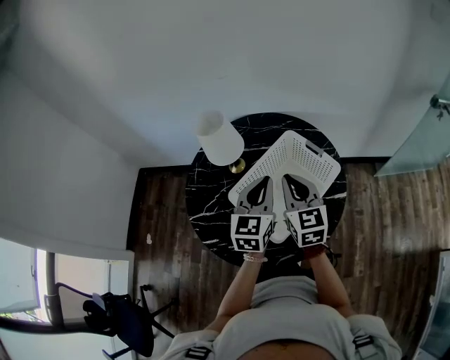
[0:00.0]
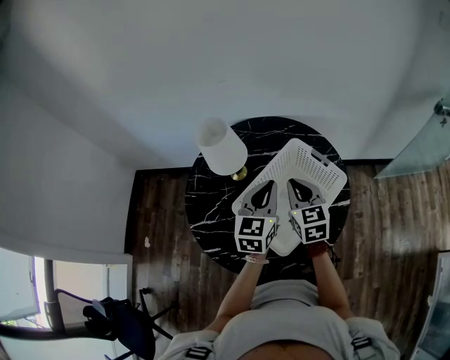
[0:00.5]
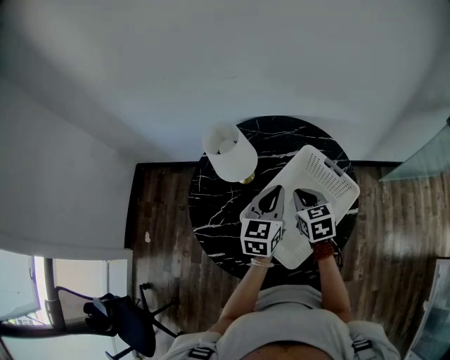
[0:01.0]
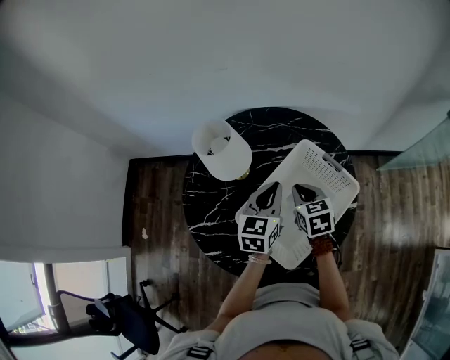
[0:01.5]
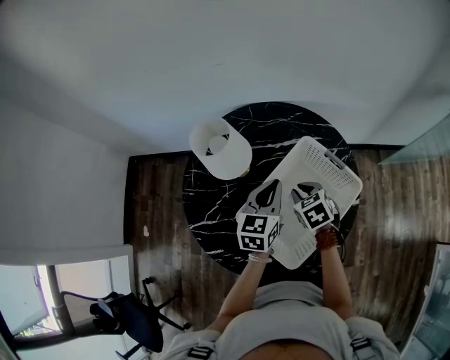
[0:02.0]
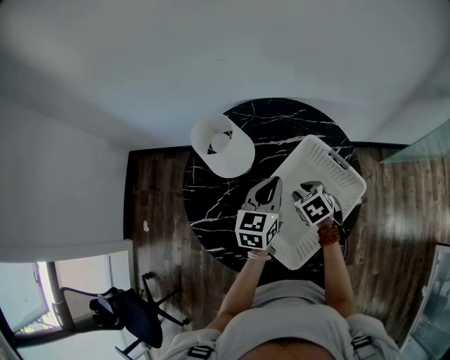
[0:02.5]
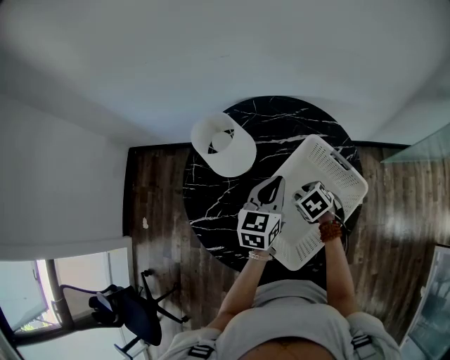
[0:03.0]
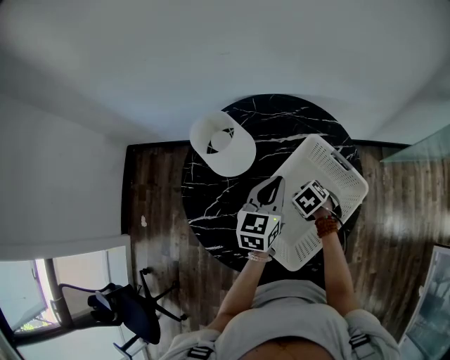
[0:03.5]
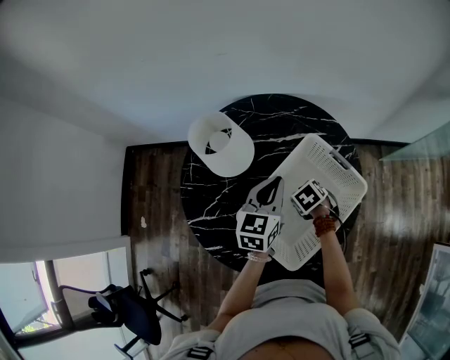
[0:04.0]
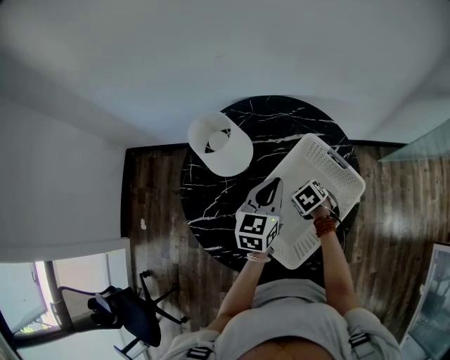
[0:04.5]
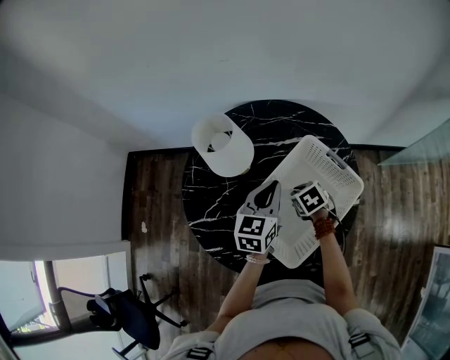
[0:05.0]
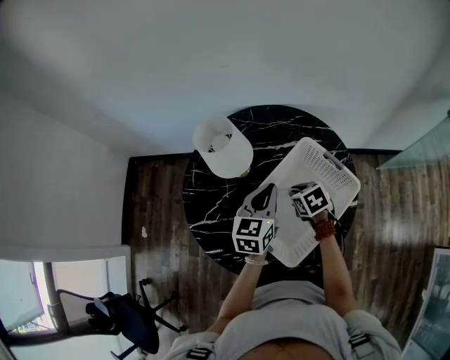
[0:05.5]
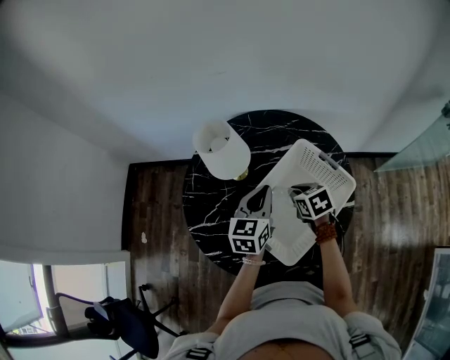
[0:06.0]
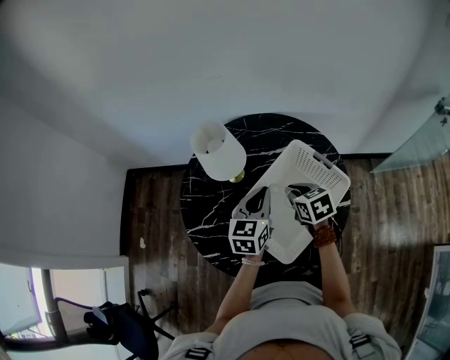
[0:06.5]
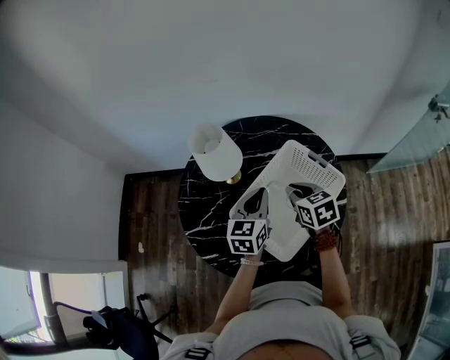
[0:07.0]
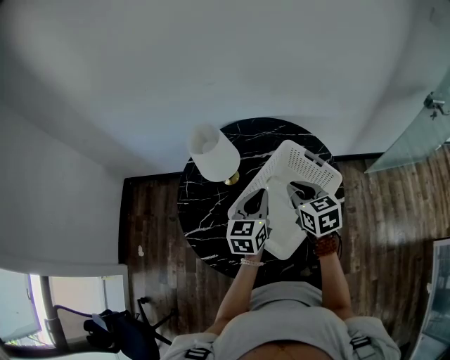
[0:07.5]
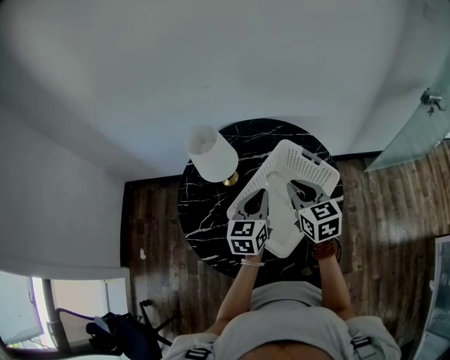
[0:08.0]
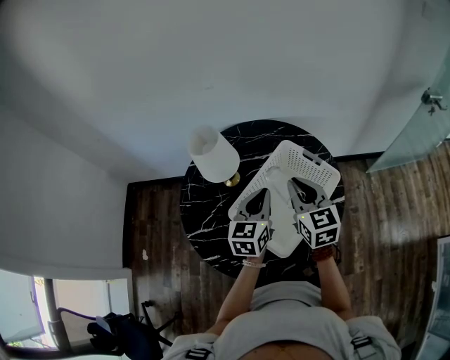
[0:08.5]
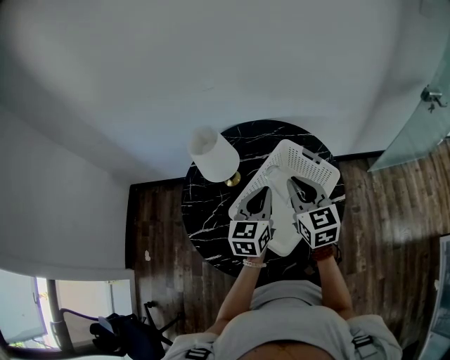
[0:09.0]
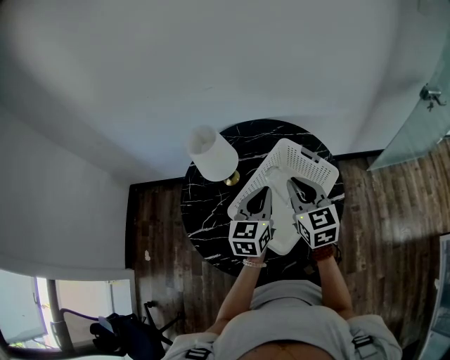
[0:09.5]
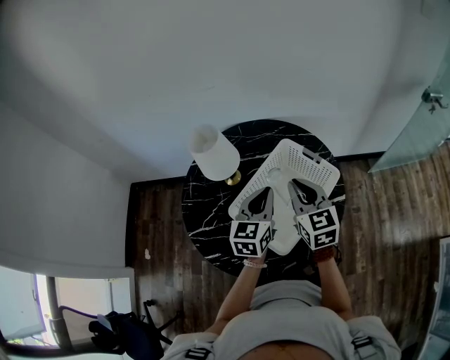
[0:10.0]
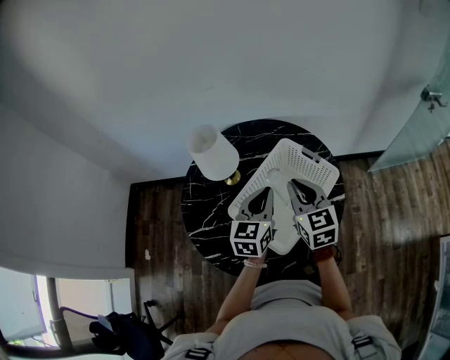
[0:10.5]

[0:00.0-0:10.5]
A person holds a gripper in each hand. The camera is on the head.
0:00.0 to 0:02.0: The left gripper goes roughly 15 cm forward and downward; the right gripper moves downward and forward, approximately 20 cm, and tips its fingers downward by roughly 40 degrees.
0:02.0 to 0:04.0: The right gripper goes about 10 cm downward, and changes its angle by some 20 degrees.
0:04.0 to 0:06.5: The right gripper travels upward by about 15 cm, and rotates some 30 degrees.
0:06.5 to 0:08.5: The right gripper is displaced upward by some 15 cm, and rotates approximately 30 degrees.
0:08.5 to 0:10.5: The grippers stay close to where they were, moving slightly.

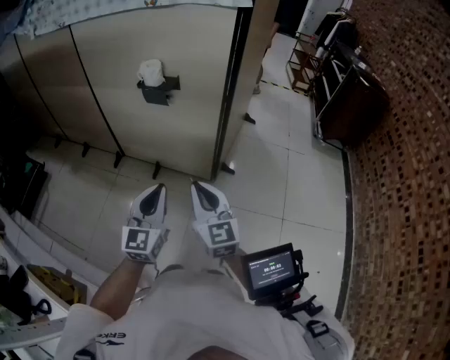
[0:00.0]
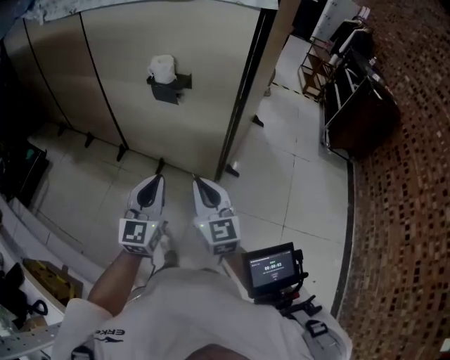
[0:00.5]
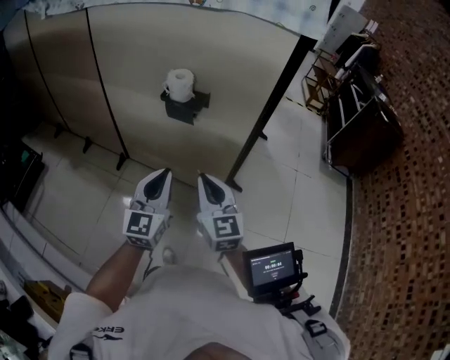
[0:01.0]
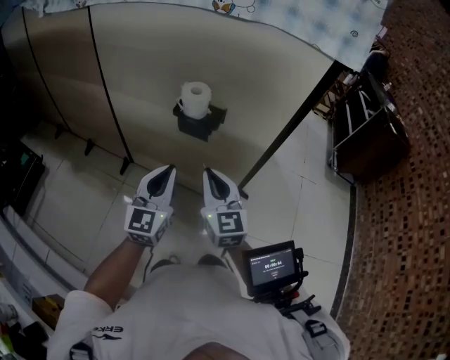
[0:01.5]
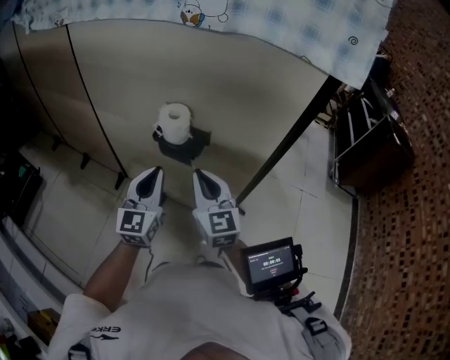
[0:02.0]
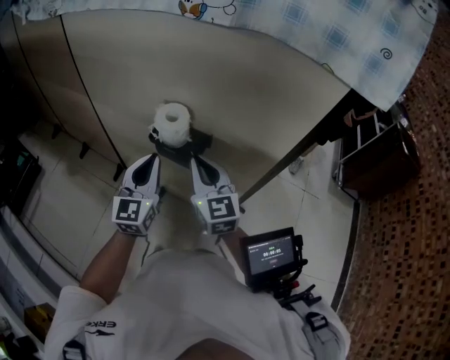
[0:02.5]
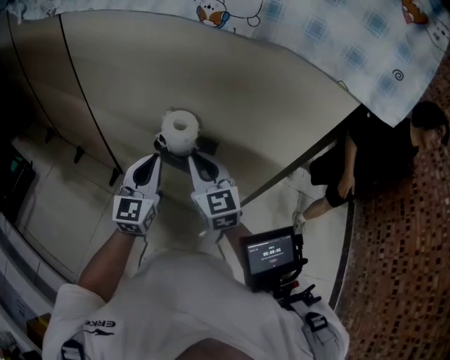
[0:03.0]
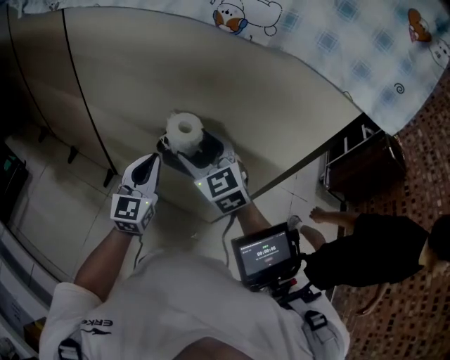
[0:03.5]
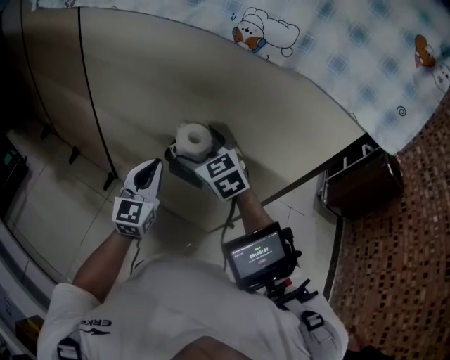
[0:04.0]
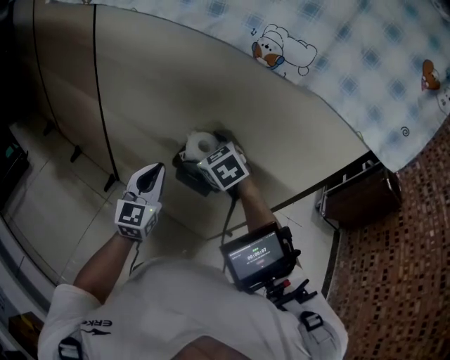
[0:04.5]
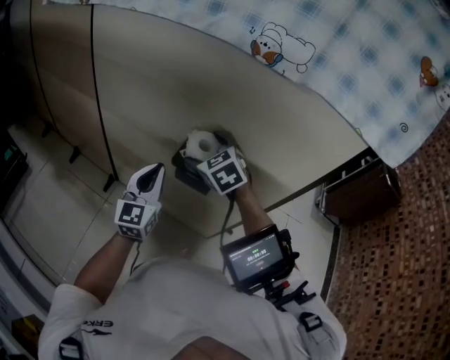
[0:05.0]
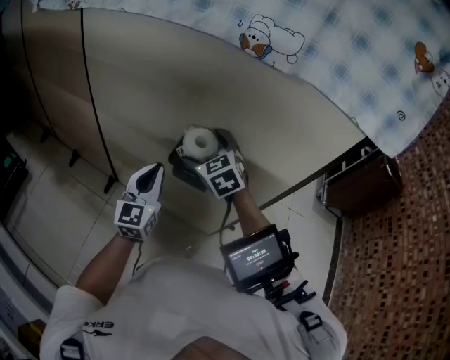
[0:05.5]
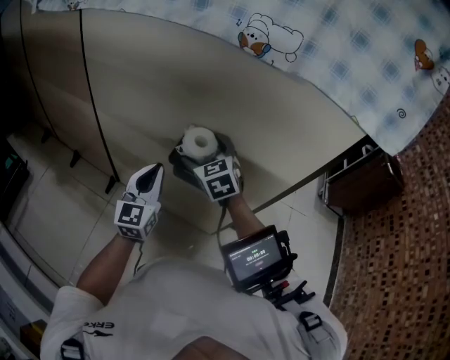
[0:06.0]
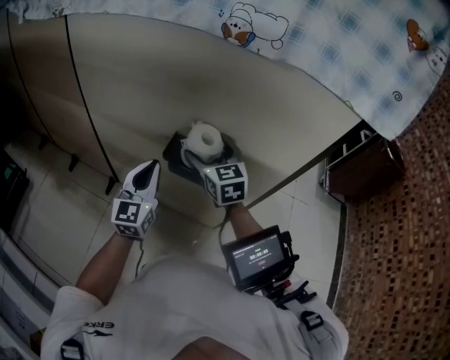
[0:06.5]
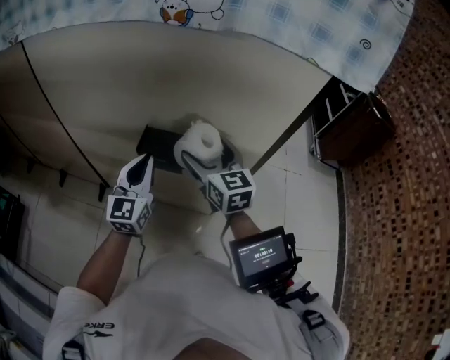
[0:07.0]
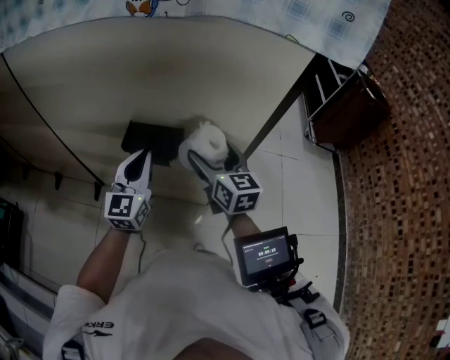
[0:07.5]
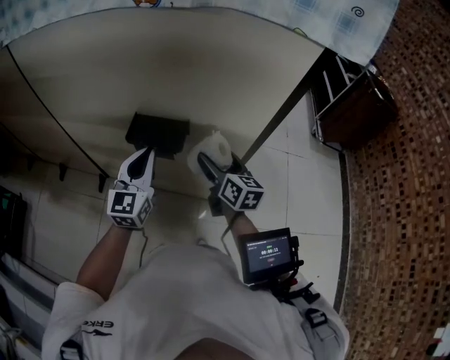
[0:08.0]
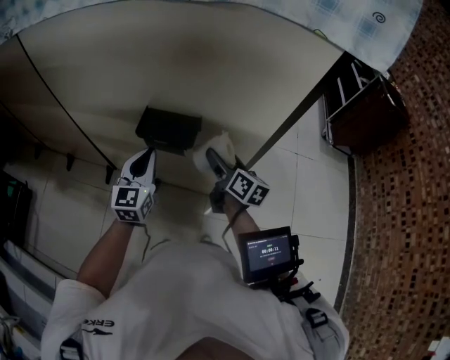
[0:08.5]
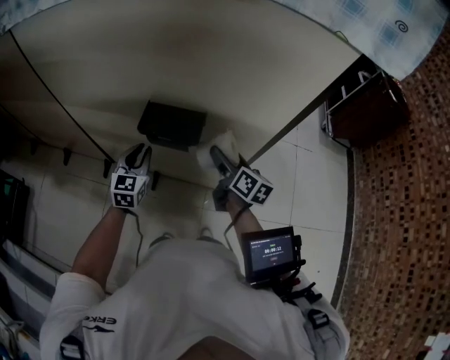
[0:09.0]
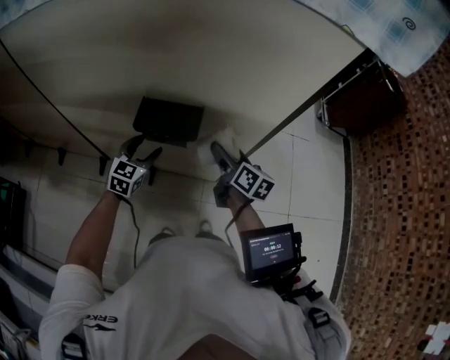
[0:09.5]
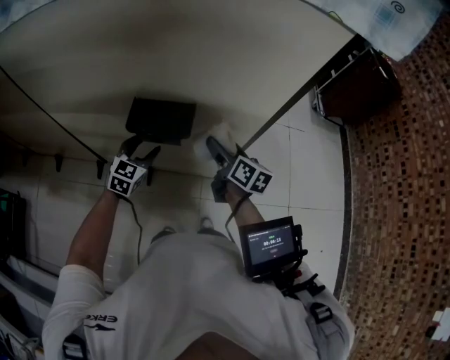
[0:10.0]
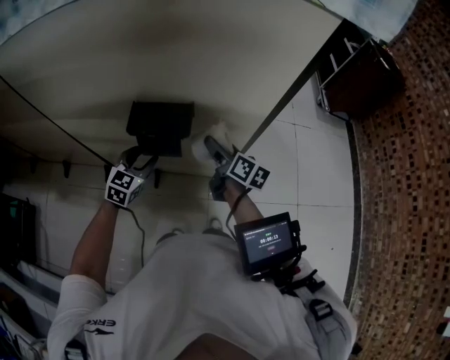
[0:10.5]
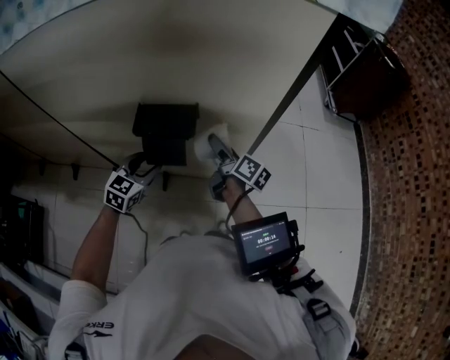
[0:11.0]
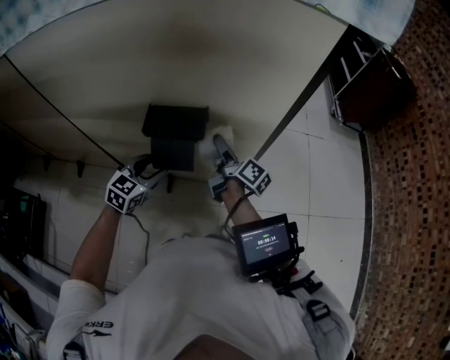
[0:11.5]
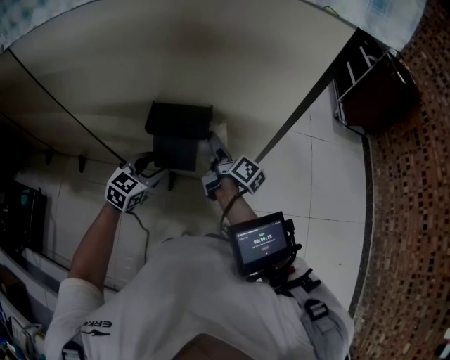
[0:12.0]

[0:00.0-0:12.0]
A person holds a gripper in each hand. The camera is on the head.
0:00.0 to 0:02.0: The two grippers go some 40 cm forward.
0:02.0 to 0:04.0: The right gripper travels forward by roughly 20 cm, swivels some 40 degrees, and opens; the left gripper heads forward, covering about 10 cm.
0:04.0 to 0:06.0: The grippers make only small movements.
0:06.0 to 0:08.0: The right gripper shifts some 20 cm to the right and backward, and twists about 50 degrees clockwise, seen from behind. Meanwhile the left gripper moves to the right, approximately 10 cm.
0:08.0 to 0:10.0: The left gripper is displaced downward by some 15 cm, turns by roughly 30 degrees, and opens up; the right gripper shifts roughly 5 cm downward.
0:10.0 to 0:12.0: The left gripper shifts some 5 cm backward; the right gripper moves to the left, about 5 cm, and rotates roughly 30 degrees.

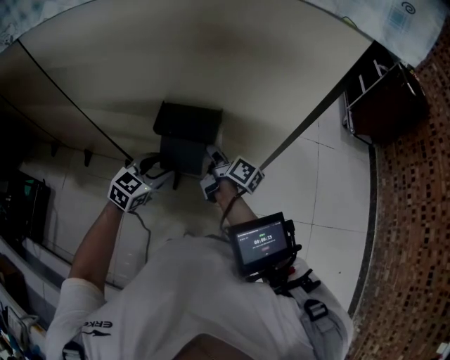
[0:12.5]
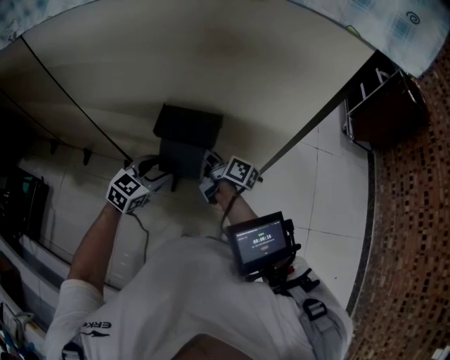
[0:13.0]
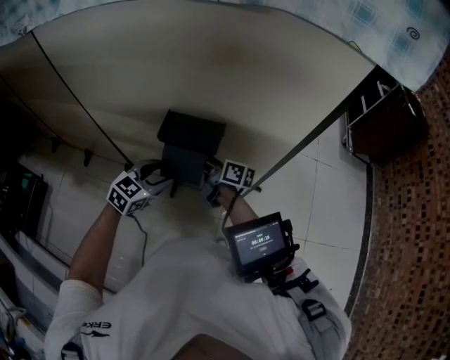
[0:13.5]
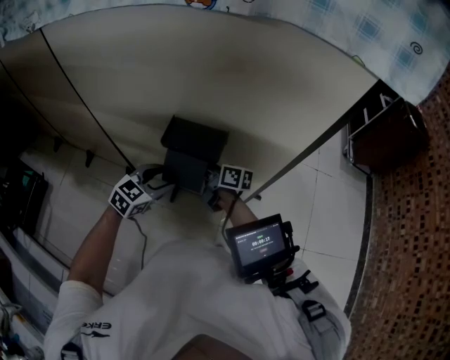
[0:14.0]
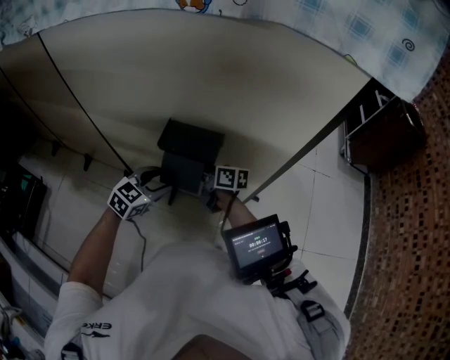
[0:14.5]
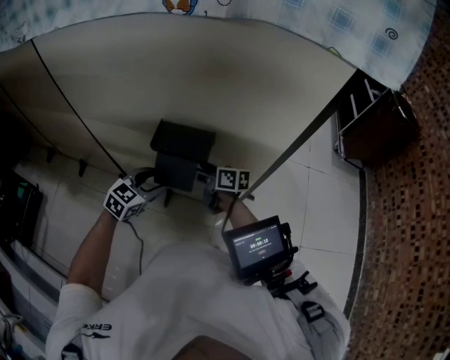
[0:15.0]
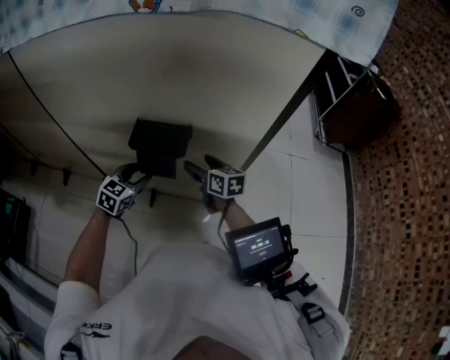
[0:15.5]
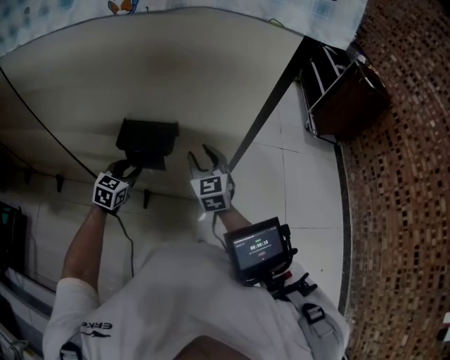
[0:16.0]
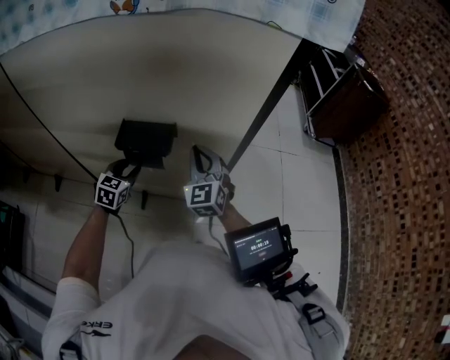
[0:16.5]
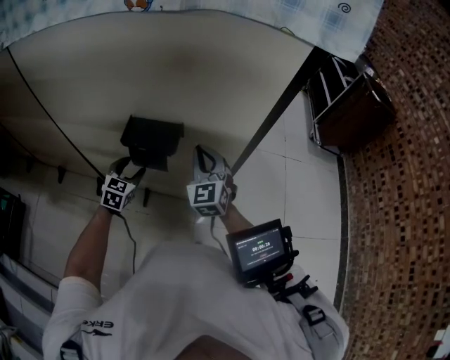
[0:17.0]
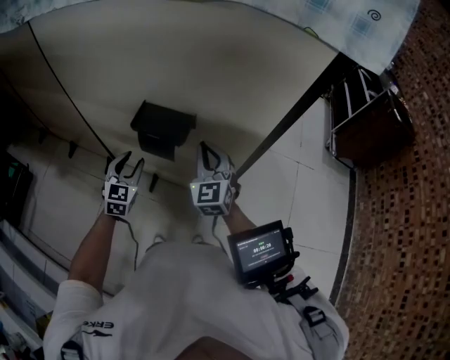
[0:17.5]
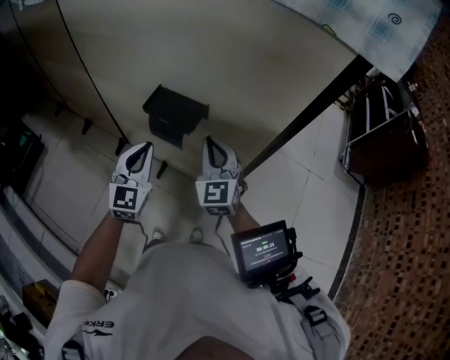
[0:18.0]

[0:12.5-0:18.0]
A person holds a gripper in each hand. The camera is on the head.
0:12.5 to 0:14.5: The right gripper is displaced to the left by approximately 5 cm, and turns by roughly 40 degrees.
0:14.5 to 0:16.0: The right gripper heads to the right and upward, covering approximately 15 cm, turns by some 70 degrees, and closes up, while the left gripper changes place by about 5 cm.
0:16.0 to 0:18.0: The left gripper goes roughly 15 cm upward and backward, rotates roughly 40 degrees, and closes its fingers. Meanwhile the right gripper moves roughly 5 cm, and swivels about 20 degrees.
